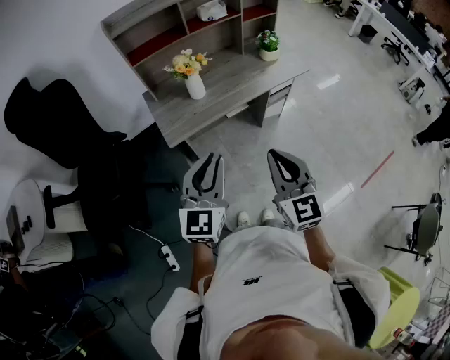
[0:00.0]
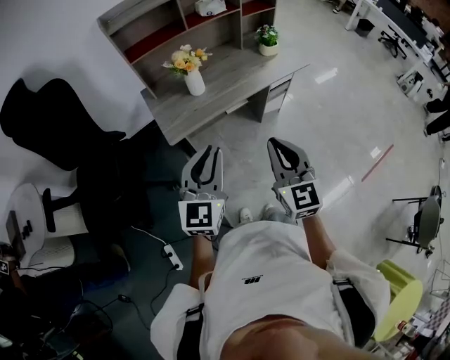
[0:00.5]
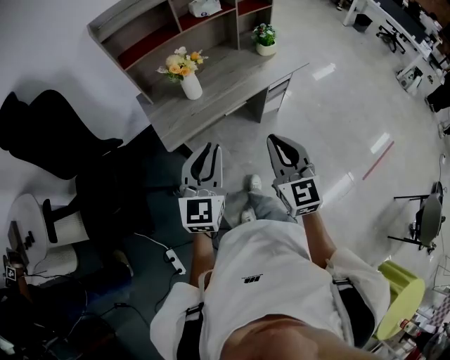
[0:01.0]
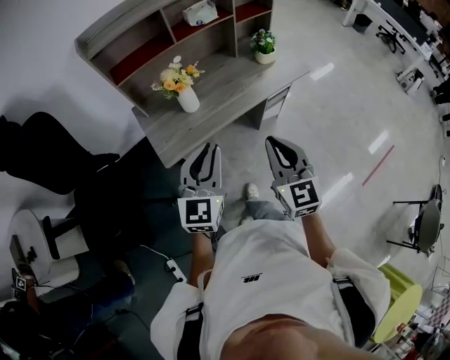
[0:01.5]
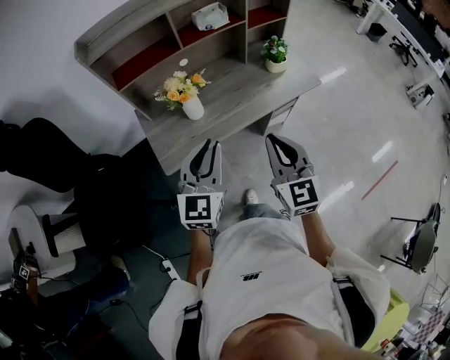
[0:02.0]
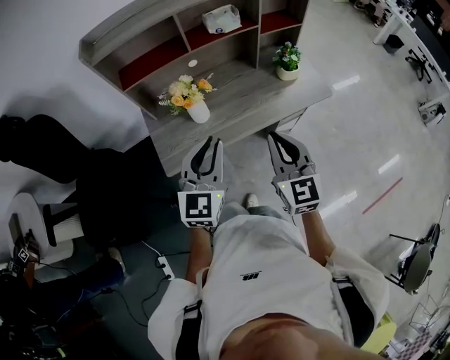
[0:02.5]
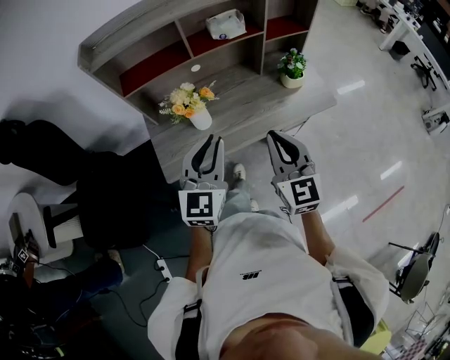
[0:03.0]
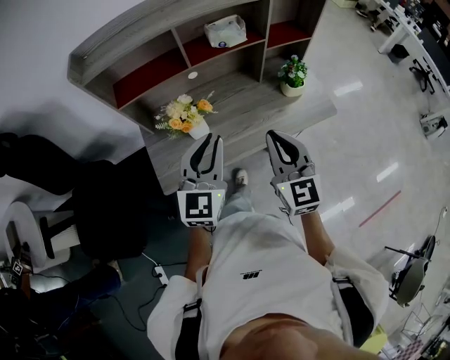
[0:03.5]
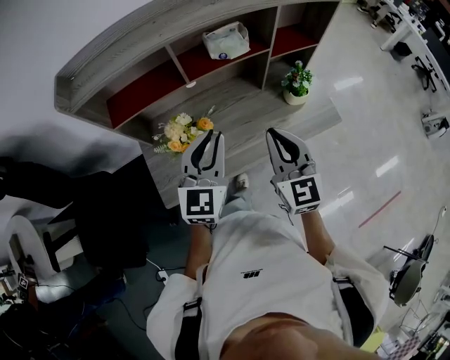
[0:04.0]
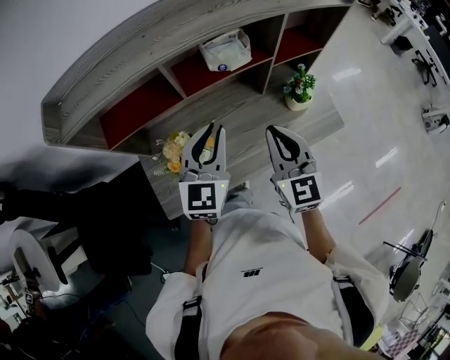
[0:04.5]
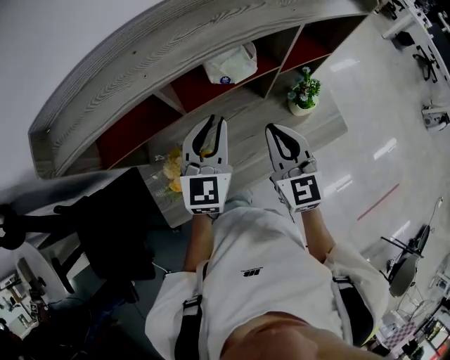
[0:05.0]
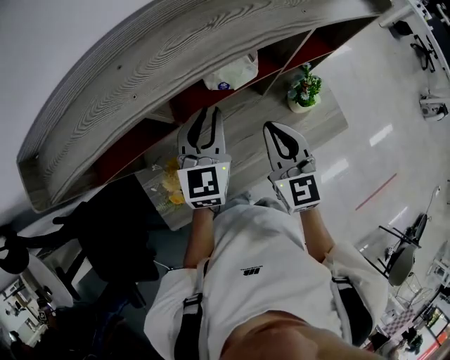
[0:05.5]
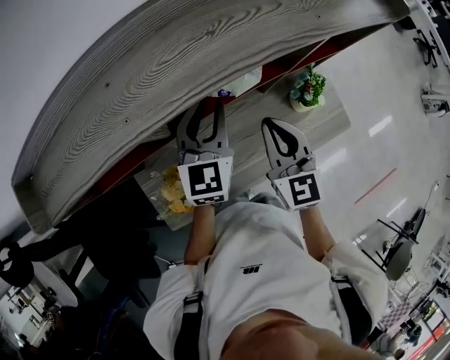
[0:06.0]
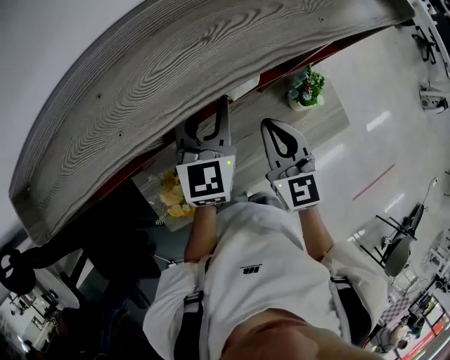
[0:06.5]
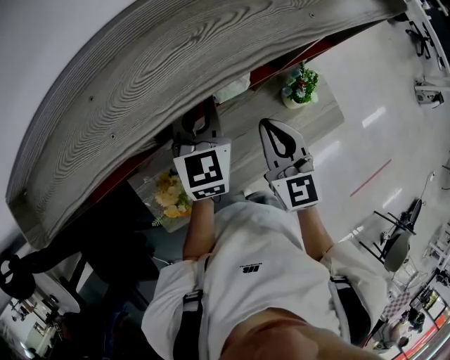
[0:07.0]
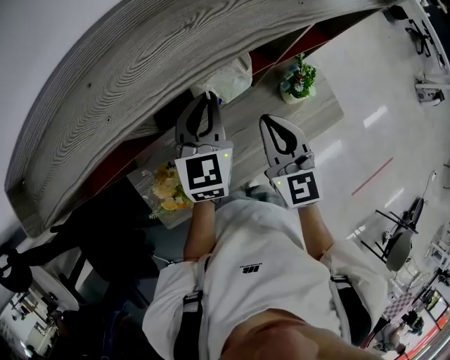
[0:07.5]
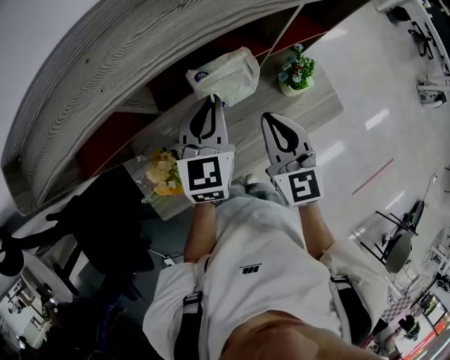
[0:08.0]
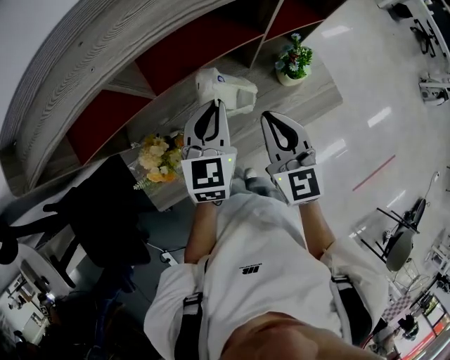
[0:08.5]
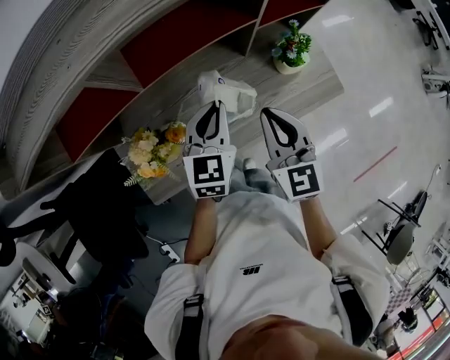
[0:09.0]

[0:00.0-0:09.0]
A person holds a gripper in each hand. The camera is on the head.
0:00.0 to 0:02.0: The two grippers go approximately 20 cm forward.
0:02.0 to 0:04.5: Both grippers travel together forward, about 30 cm.
0:04.5 to 0:07.0: The right gripper travels forward and downward by approximately 15 cm. The left gripper goes some 20 cm forward.
0:07.0 to 0:09.0: The right gripper moves backward, approximately 10 cm. The left gripper travels backward and downward by about 15 cm.

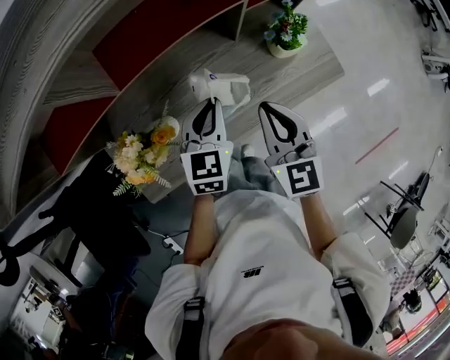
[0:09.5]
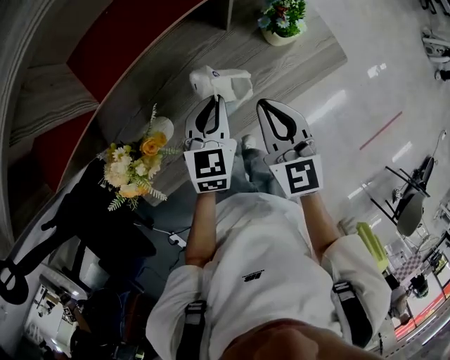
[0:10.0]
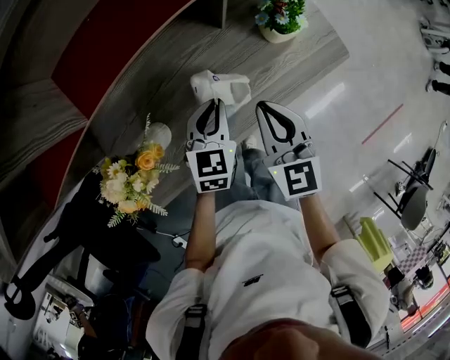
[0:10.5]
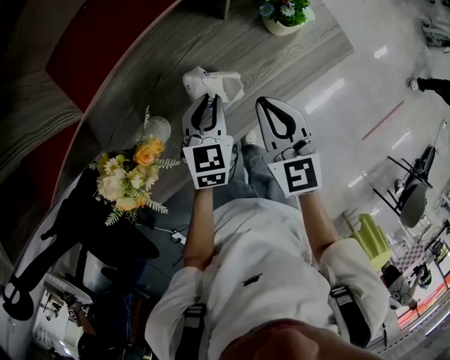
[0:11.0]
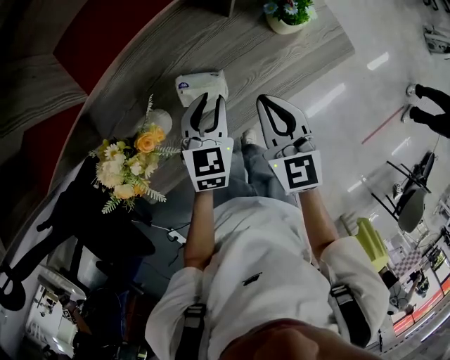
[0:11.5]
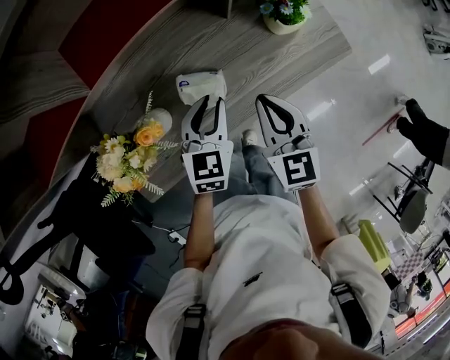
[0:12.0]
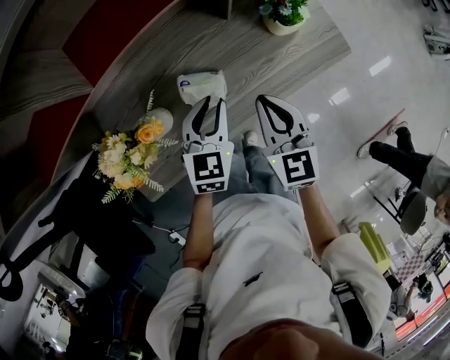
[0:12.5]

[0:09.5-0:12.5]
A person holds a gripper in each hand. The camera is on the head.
0:09.5 to 0:11.0: Both grippers move downward, roughly 10 cm.
0:11.0 to 0:12.5: The left gripper moves about 5 cm.

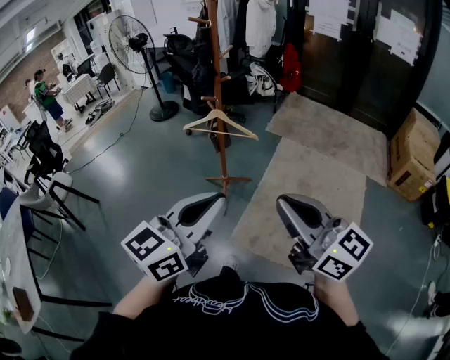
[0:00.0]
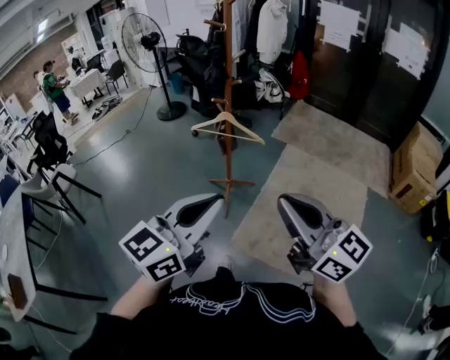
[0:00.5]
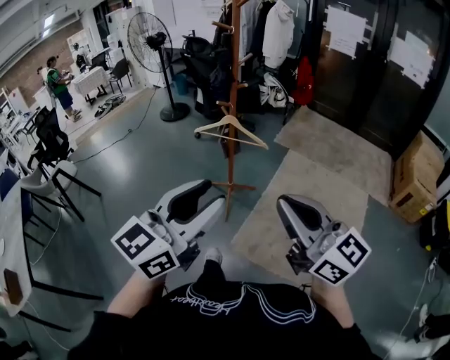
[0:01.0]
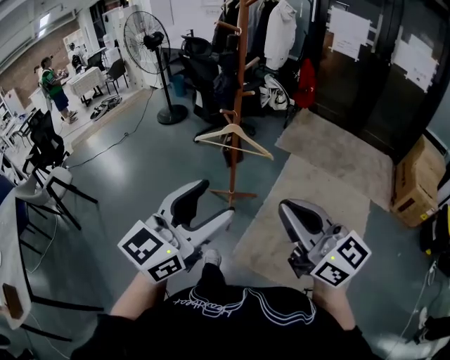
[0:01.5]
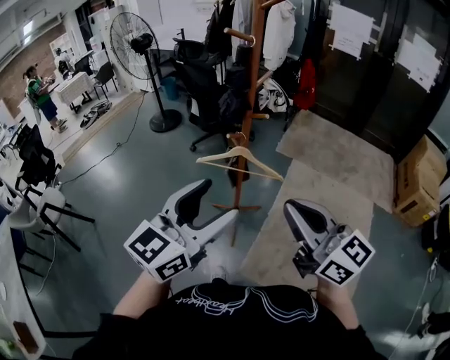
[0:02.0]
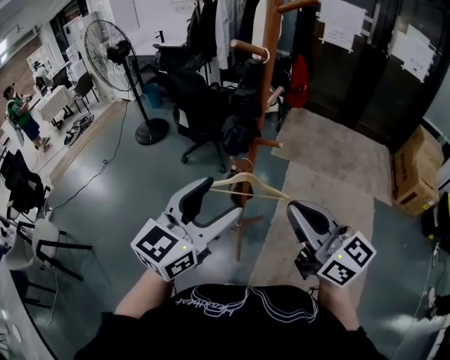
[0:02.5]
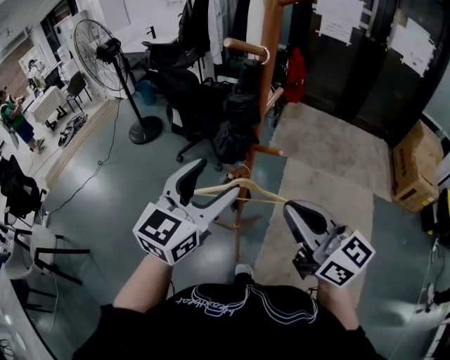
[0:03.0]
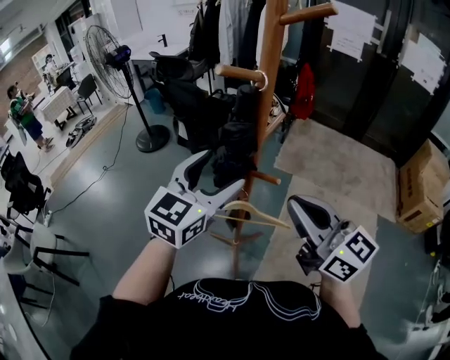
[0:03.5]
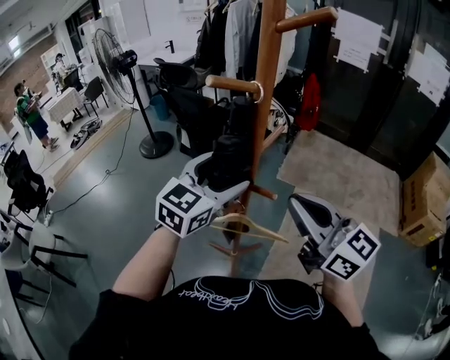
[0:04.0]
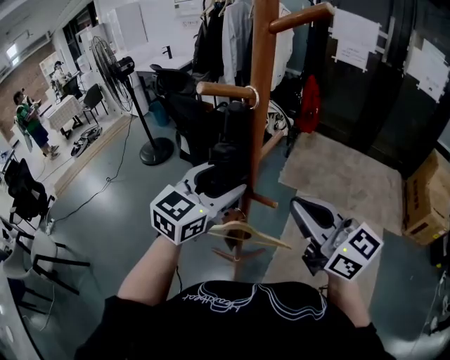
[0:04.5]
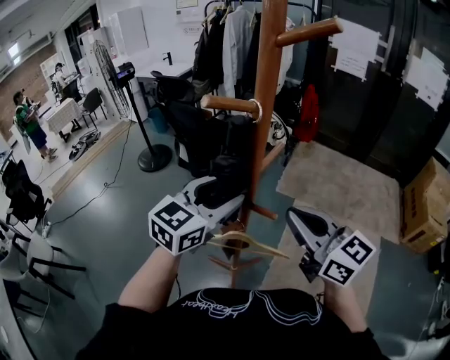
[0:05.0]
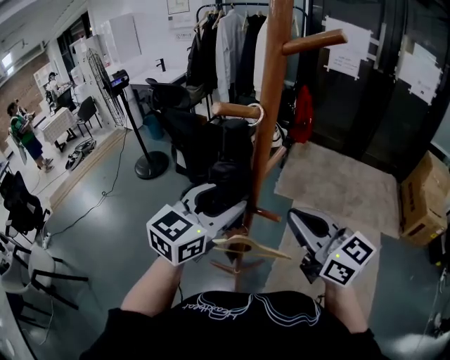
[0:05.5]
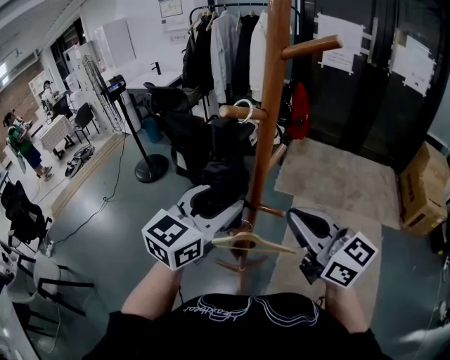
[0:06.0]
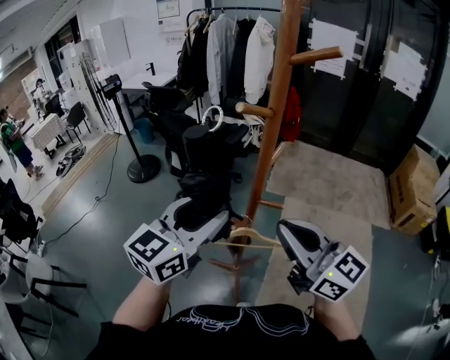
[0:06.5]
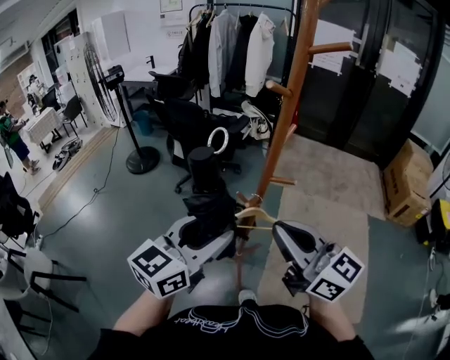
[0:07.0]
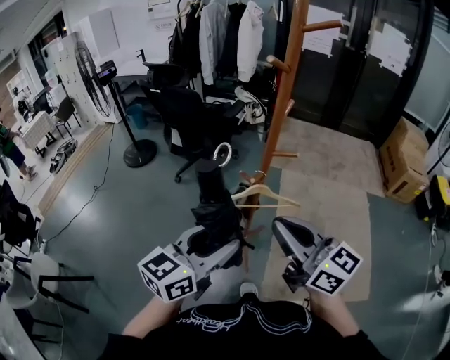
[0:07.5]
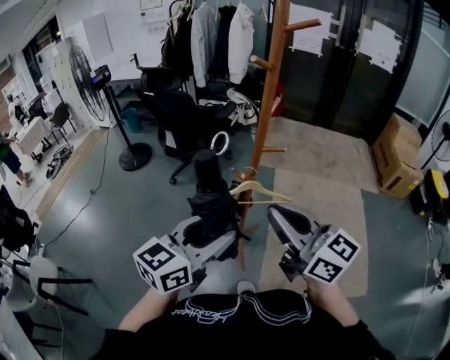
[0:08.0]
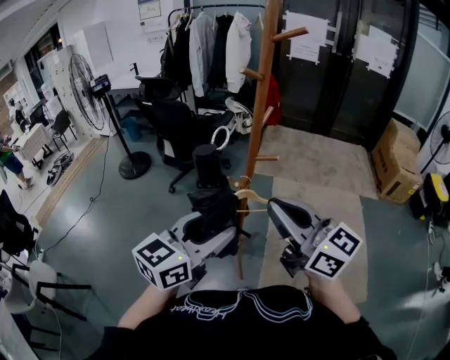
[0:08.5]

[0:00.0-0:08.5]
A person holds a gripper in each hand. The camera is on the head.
0:00.0 to 0:02.0: Both grippers travel together forward and to the left, roughly 25 cm. The left gripper opens up.
0:02.0 to 0:04.0: Both grippers travel together forward, roughly 30 cm.
0:04.0 to 0:06.5: The left gripper shifts approximately 10 cm backward and to the left, and closes; the right gripper travels to the left by roughly 5 cm.
0:06.5 to 0:08.5: Both grippers travel together backward, some 15 cm.

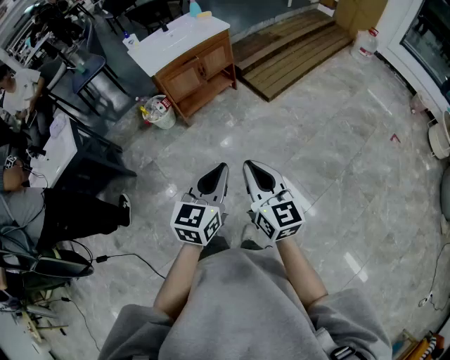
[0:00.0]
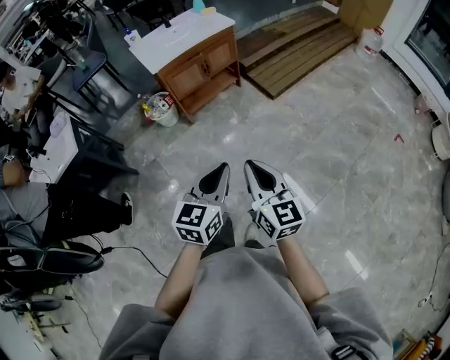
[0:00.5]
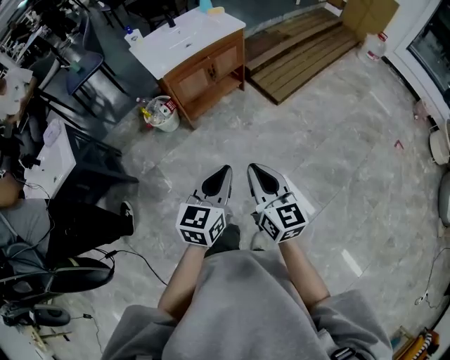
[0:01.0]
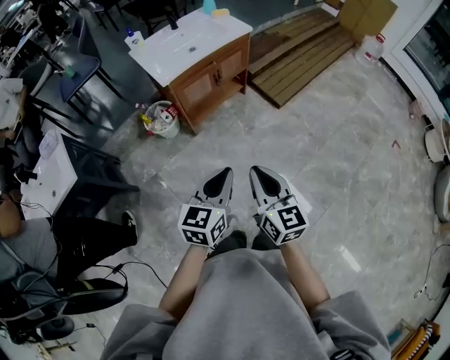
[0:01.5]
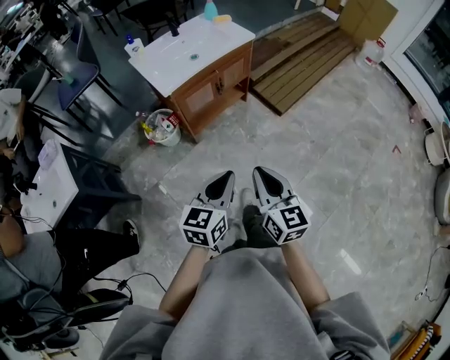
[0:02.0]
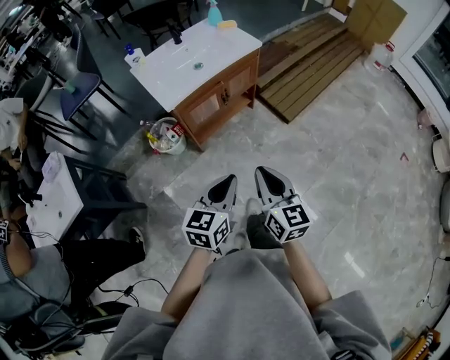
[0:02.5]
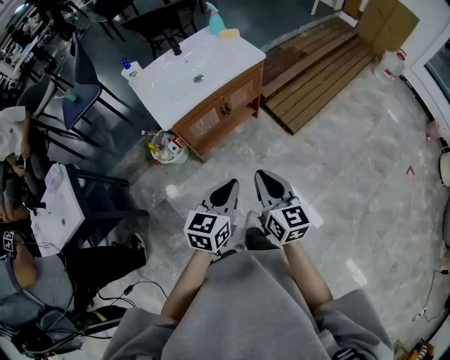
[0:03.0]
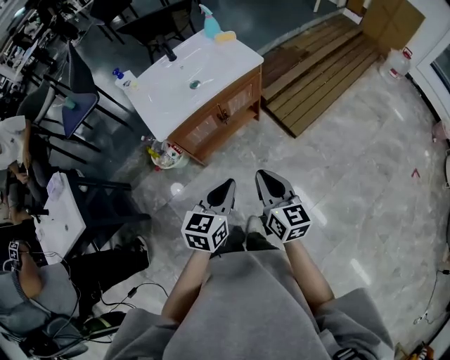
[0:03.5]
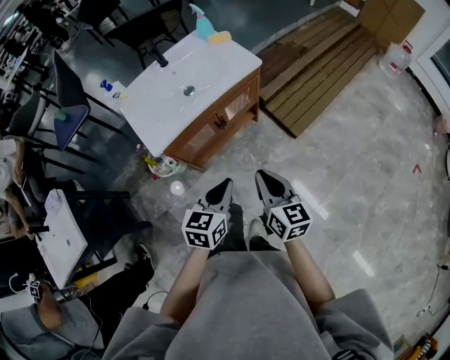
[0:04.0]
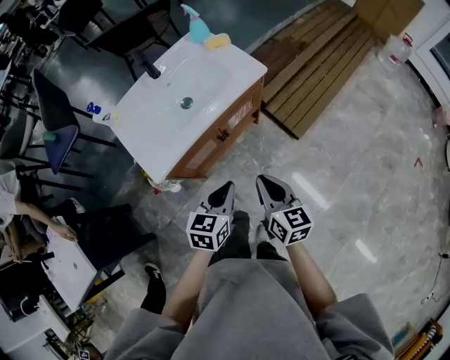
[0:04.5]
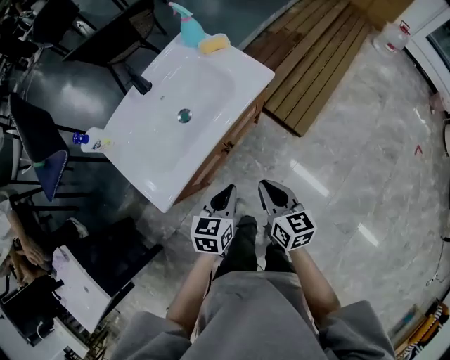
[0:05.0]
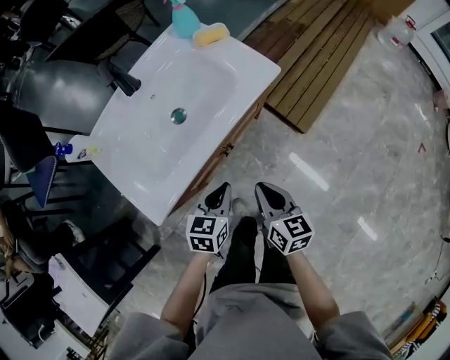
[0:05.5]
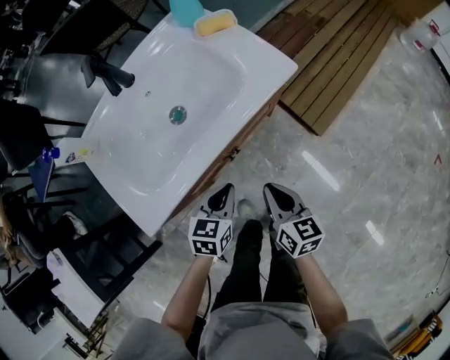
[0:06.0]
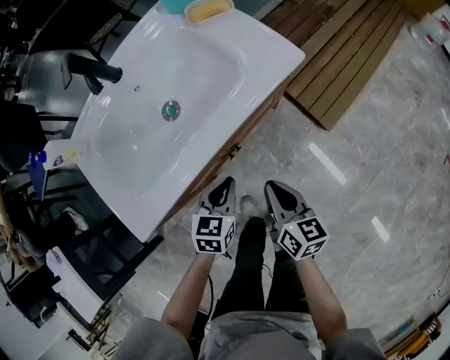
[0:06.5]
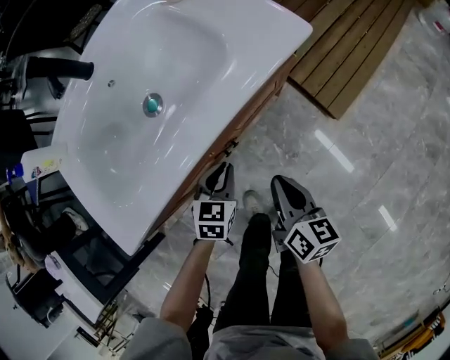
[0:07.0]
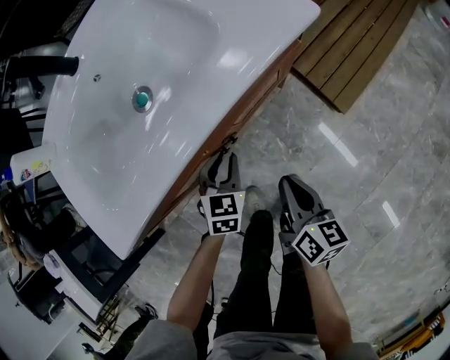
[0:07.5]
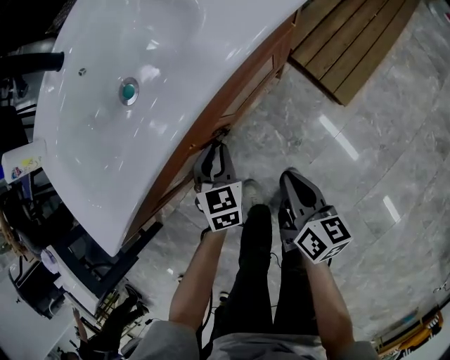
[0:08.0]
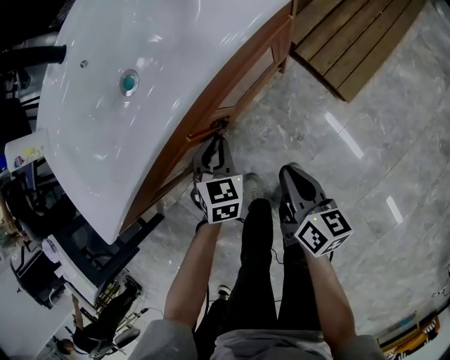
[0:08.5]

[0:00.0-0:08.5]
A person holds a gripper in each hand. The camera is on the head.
0:00.0 to 0:02.0: The two grippers go roughly 30 cm forward and to the left.
0:02.0 to 0:04.0: Both grippers travel together forward, approximately 30 cm.
0:04.0 to 0:06.5: Both grippers travel together downward and forward, roughly 35 cm.
0:06.5 to 0:08.5: Both grippers travel together downward, approximately 10 cm. The left gripper changes its angle by approximately 30 degrees.
